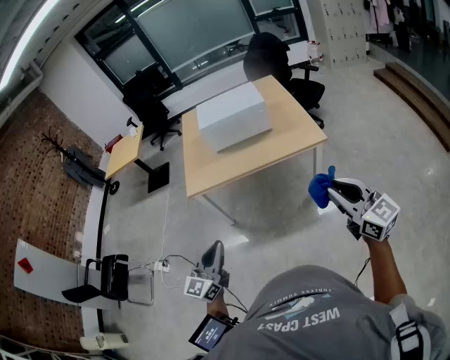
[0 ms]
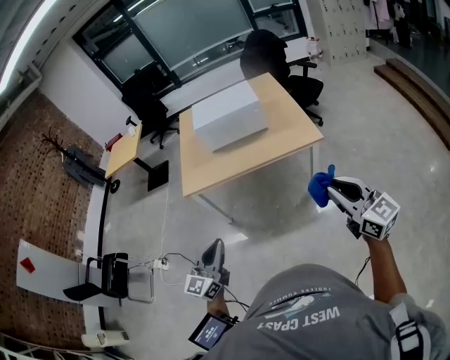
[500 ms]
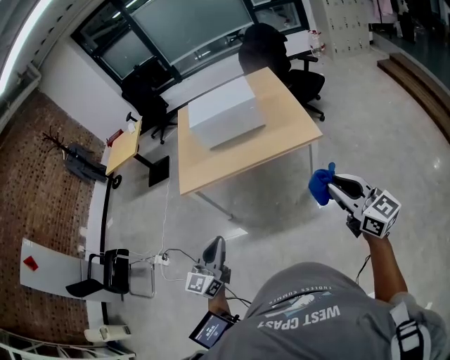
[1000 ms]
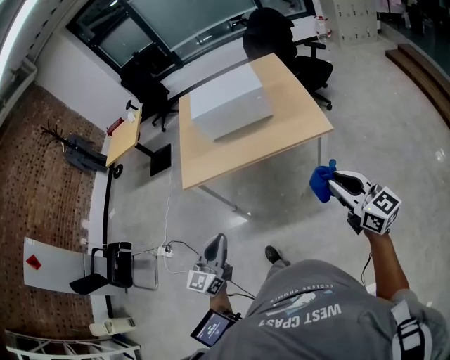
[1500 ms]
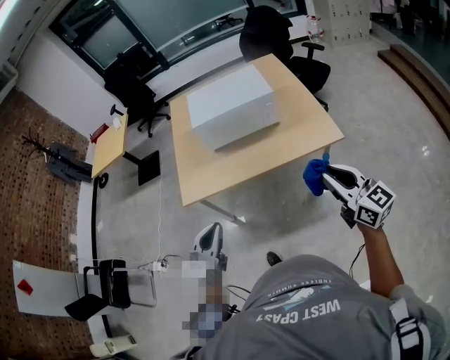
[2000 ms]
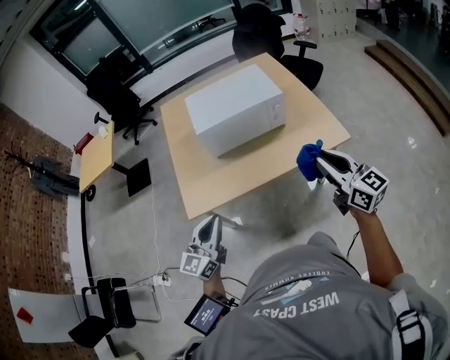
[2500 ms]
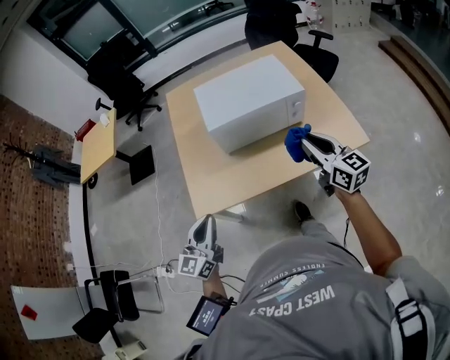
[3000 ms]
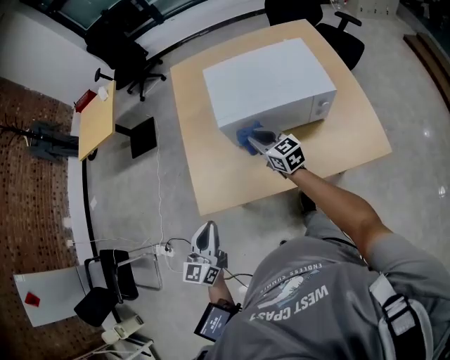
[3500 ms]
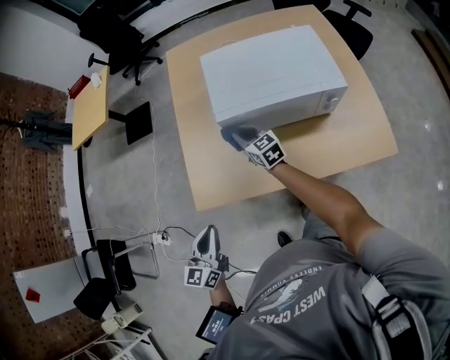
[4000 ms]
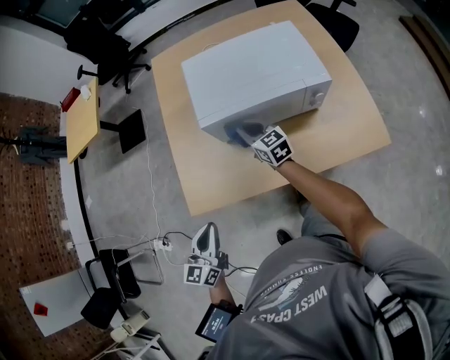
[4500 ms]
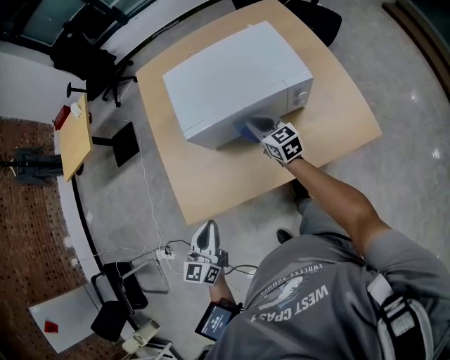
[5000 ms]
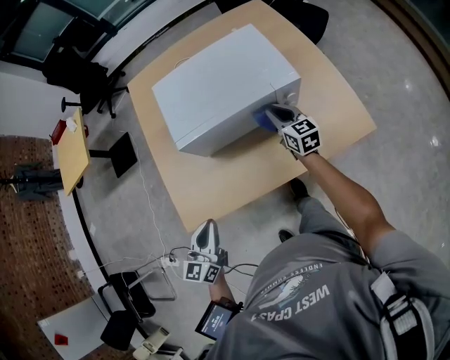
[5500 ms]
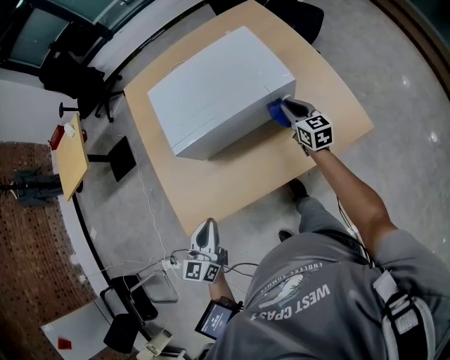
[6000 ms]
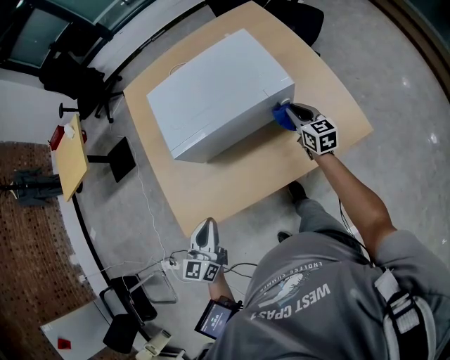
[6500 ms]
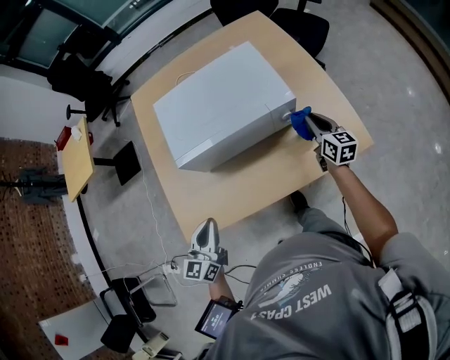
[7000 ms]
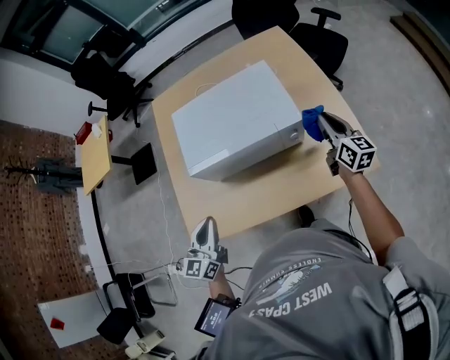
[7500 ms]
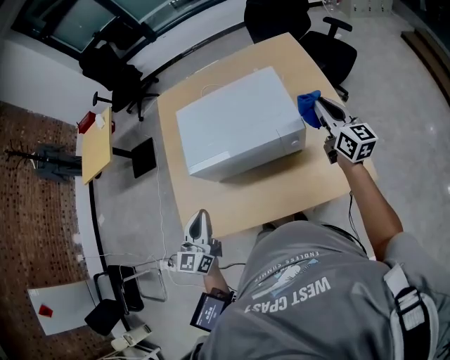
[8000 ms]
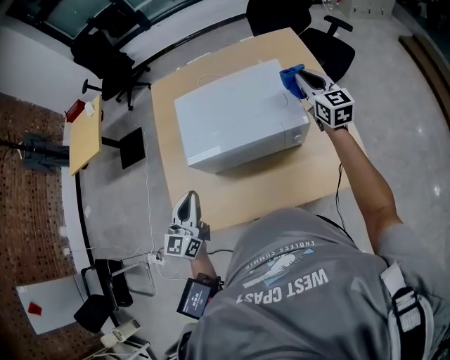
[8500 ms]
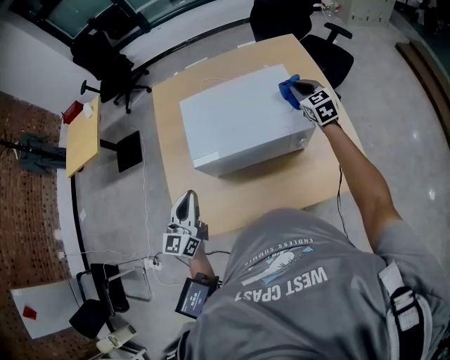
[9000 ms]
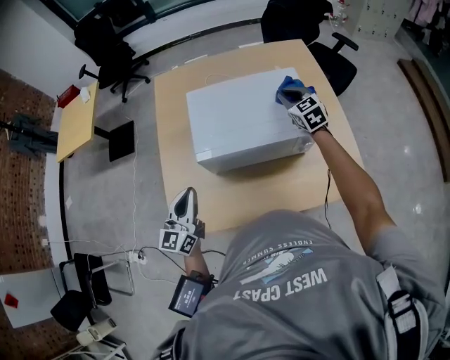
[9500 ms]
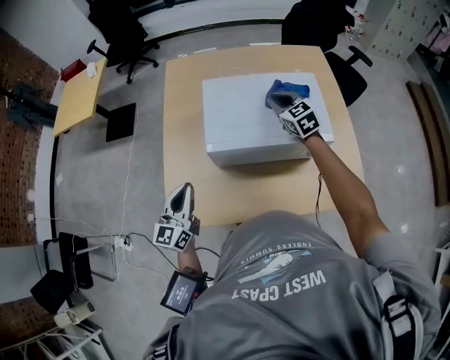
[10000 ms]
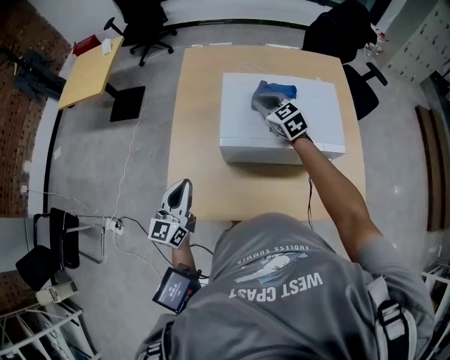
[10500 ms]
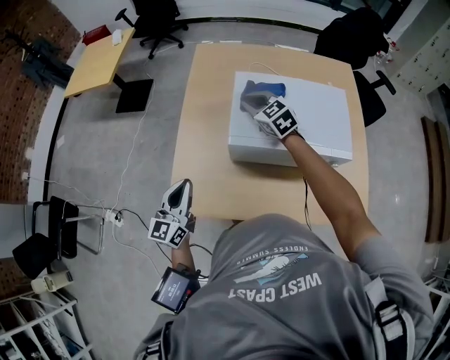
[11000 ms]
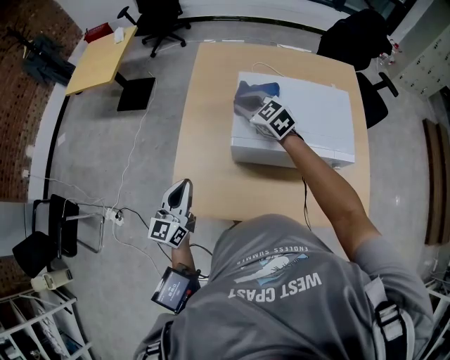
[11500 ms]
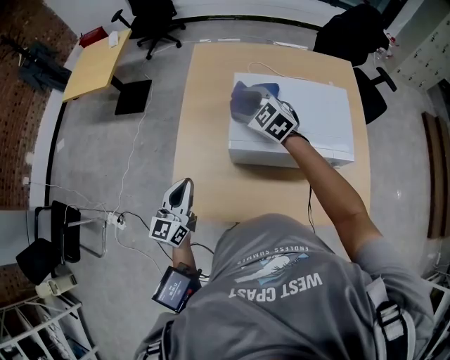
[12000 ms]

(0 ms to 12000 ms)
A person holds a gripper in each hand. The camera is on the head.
0 ms - 2000 ms: The grippers both shift forward by some 25 cm.
2000 ms - 4000 ms: The right gripper heads forward, to the left and downward, covering approximately 70 cm, and rotates roughly 20 degrees; the left gripper travels forward, to the left and downward by approximately 35 cm, and turns by approximately 20 degrees.
4000 ms - 6000 ms: The right gripper shifts some 35 cm to the right, and turns by roughly 30 degrees; the left gripper goes some 15 cm to the right and forward.
6000 ms - 8000 ms: The left gripper travels upward and forward by roughly 10 cm. The right gripper travels upward and to the right by some 20 cm.
8000 ms - 10000 ms: The right gripper heads to the left and forward, covering approximately 30 cm, and changes its angle by about 50 degrees. Meanwhile the left gripper moves to the left, roughly 10 cm.
10000 ms - 12000 ms: The left gripper shifts approximately 5 cm to the left; the right gripper moves to the left, approximately 20 cm, swivels about 30 degrees, and opens its fingers.

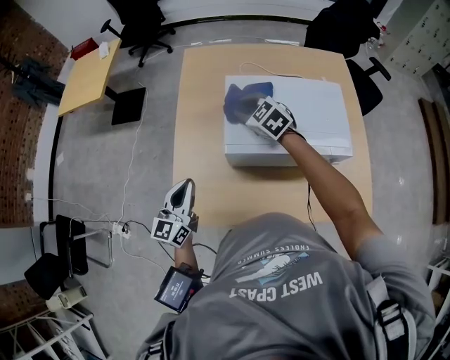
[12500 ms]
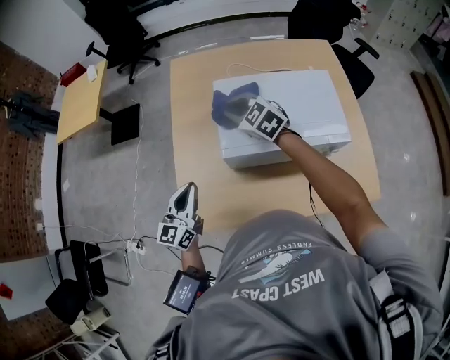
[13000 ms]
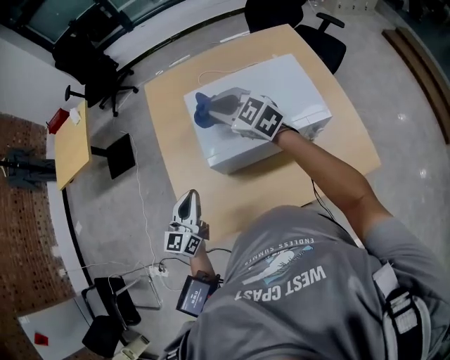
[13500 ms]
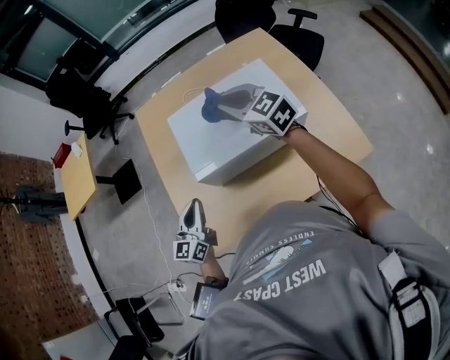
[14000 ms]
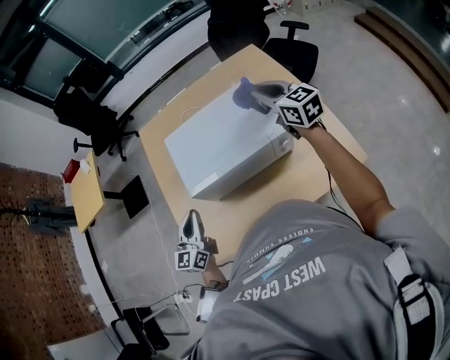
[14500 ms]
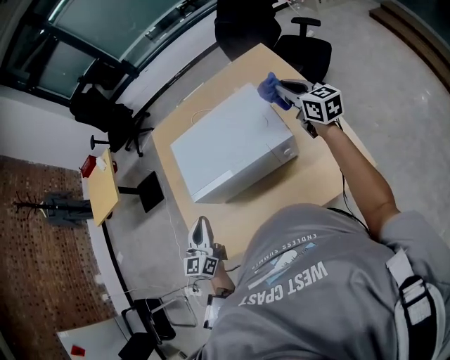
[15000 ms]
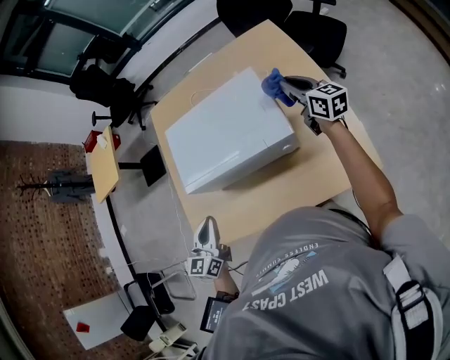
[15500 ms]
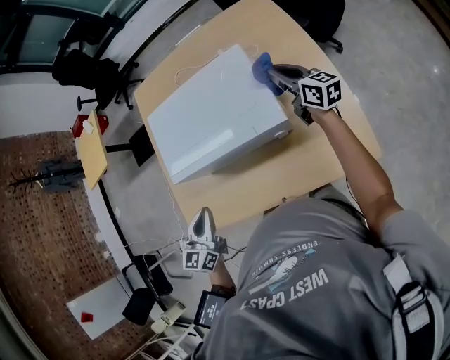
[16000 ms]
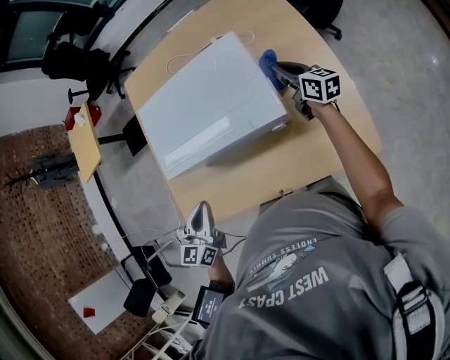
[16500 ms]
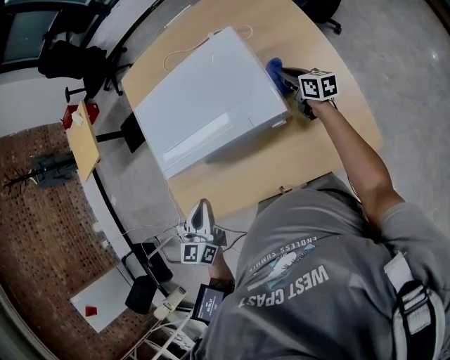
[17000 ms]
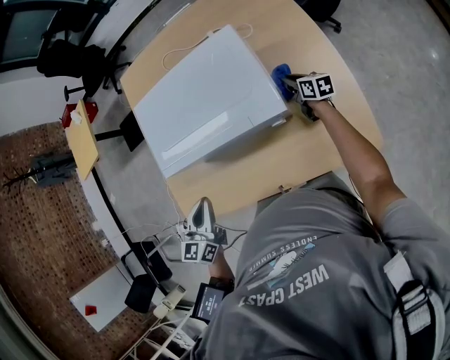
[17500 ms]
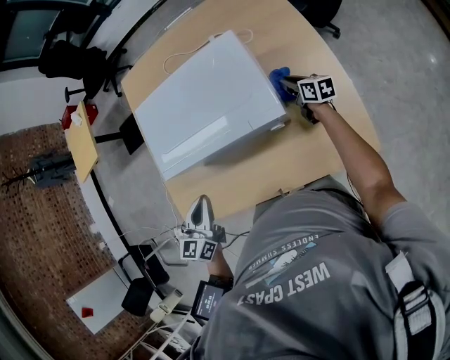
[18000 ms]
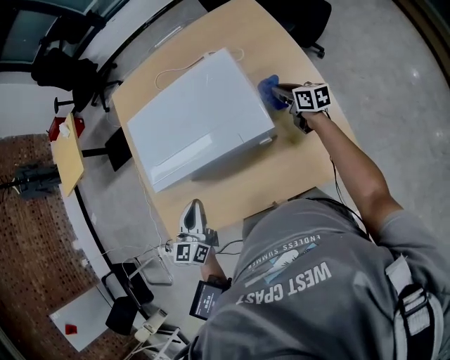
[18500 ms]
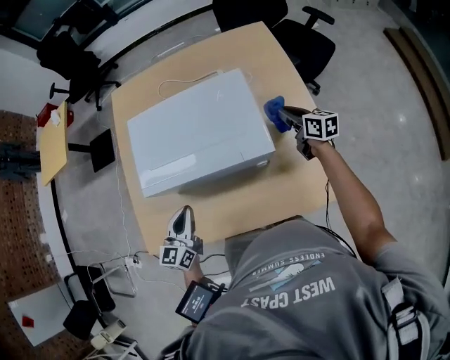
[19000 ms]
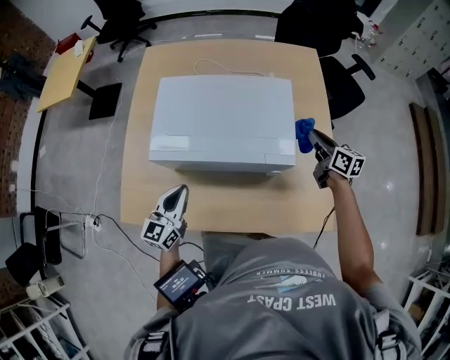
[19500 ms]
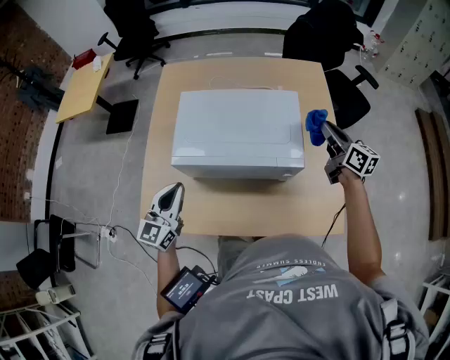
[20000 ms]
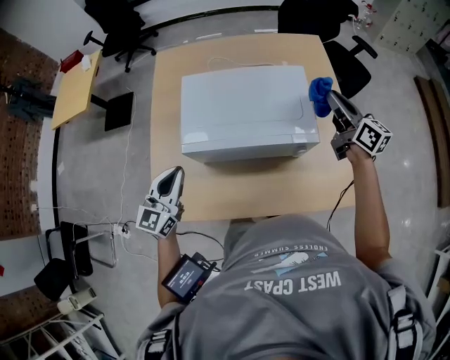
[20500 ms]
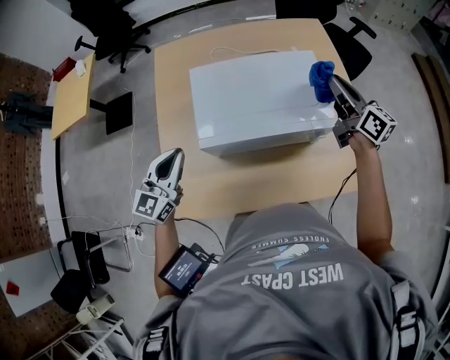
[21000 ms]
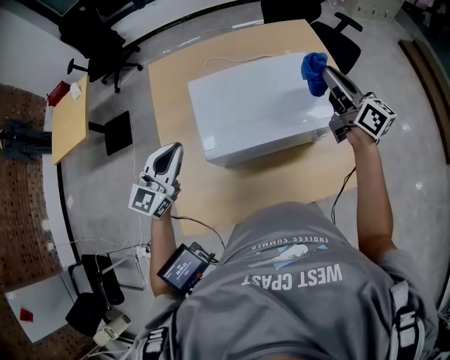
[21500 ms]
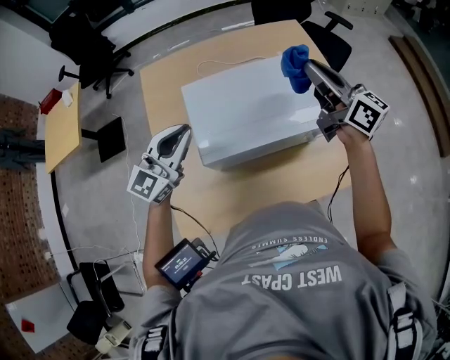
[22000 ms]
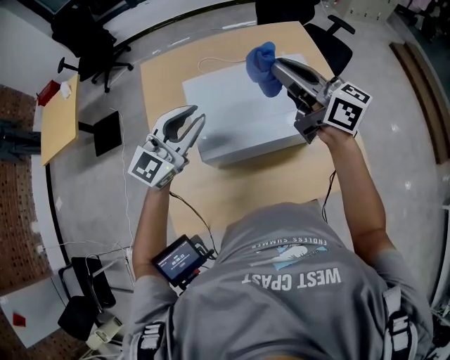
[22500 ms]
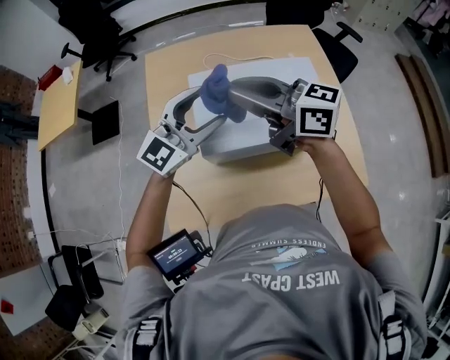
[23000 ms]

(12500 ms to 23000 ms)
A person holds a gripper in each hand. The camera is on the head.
12500 ms - 14500 ms: The right gripper goes about 35 cm to the right, and turns by roughly 50 degrees. Meanwhile the left gripper travels to the right by approximately 15 cm.
14500 ms - 16500 ms: The left gripper travels to the right and downward by about 15 cm, and swivels approximately 20 degrees, while the right gripper goes some 25 cm downward and to the right, and rotates about 30 degrees.
16500 ms - 19000 ms: The right gripper travels downward and back again, some 15 cm each way. Meanwhile the left gripper shifts by roughly 5 cm.
19000 ms - 21000 ms: The left gripper moves to the left and upward, some 20 cm, and rotates some 20 degrees, while the right gripper heads upward and to the left, covering roughly 25 cm, and changes its angle by some 20 degrees.
21000 ms - 23000 ms: The left gripper goes roughly 15 cm forward, to the right and upward, swivels approximately 30 degrees, and opens, while the right gripper goes about 25 cm to the left, and swivels about 40 degrees.

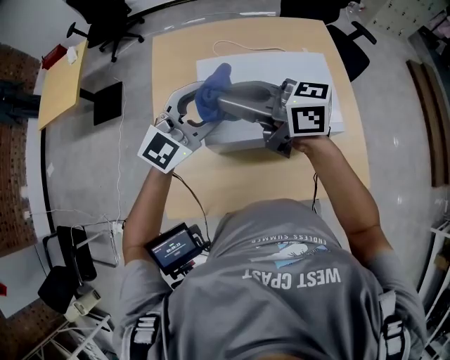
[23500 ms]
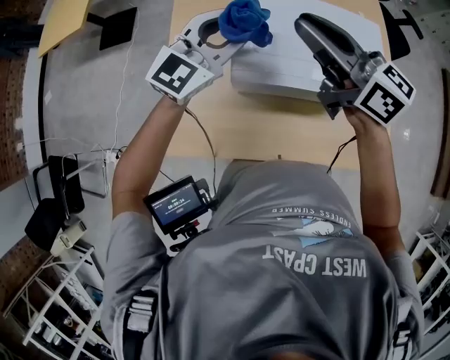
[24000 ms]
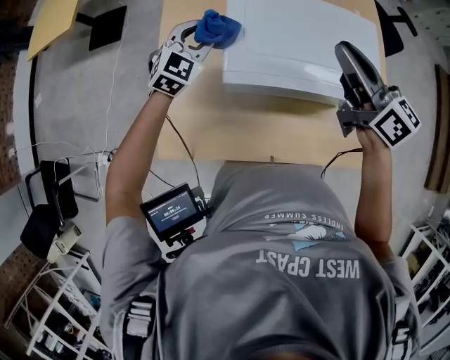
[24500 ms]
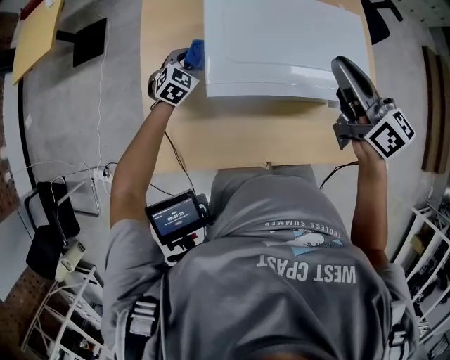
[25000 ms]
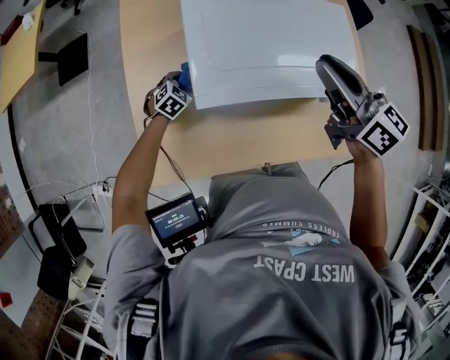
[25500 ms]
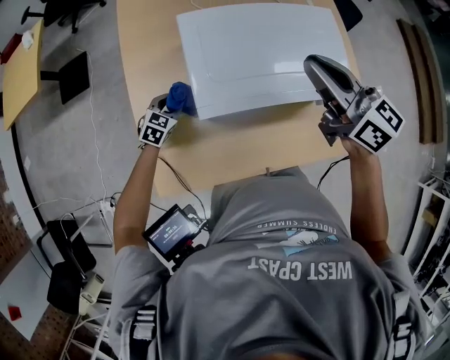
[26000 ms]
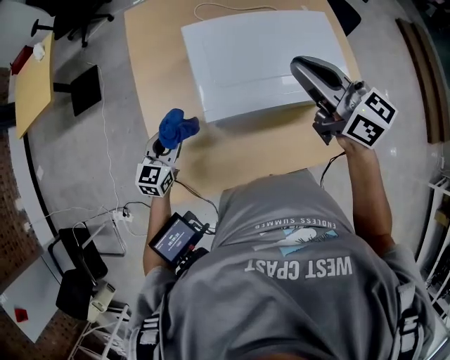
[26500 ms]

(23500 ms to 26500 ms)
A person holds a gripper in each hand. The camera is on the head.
23500 ms - 25000 ms: The left gripper shifts approximately 35 cm downward, tilts its fingers approximately 40 degrees downward, and closes up. The right gripper shifts roughly 15 cm to the right and downward, and changes its angle by about 40 degrees.
25000 ms - 26500 ms: The right gripper moves roughly 5 cm, while the left gripper heads backward and upward, covering approximately 15 cm, and swivels about 30 degrees.

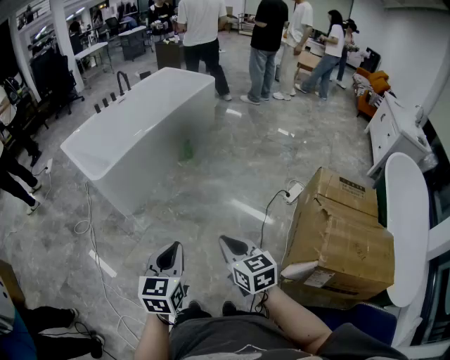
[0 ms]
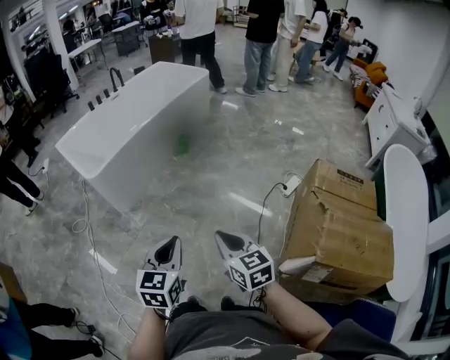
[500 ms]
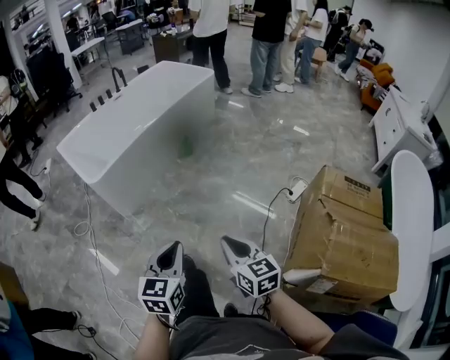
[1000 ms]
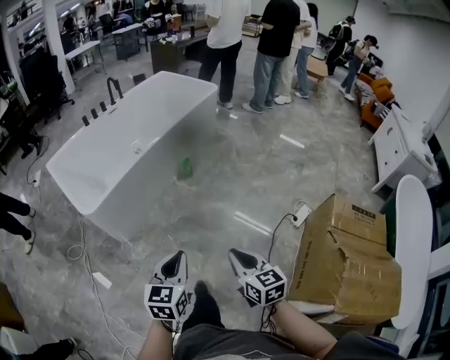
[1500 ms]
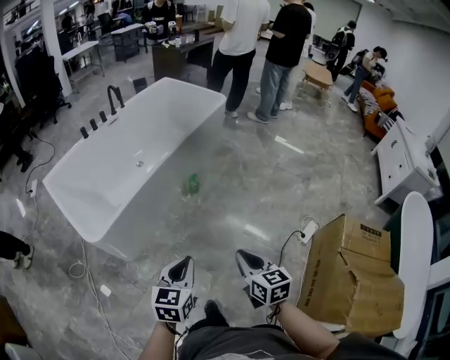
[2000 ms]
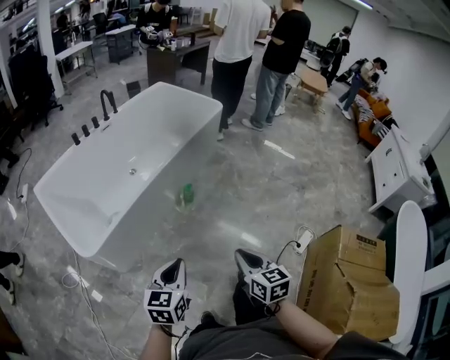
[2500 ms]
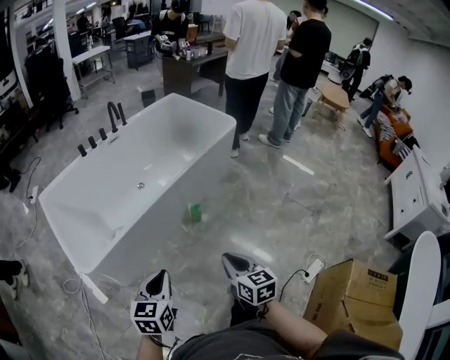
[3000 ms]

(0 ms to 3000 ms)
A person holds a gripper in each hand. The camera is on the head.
0 ms - 1500 ms: Both grippers move forward, roughly 25 cm.
1500 ms - 3000 ms: Both grippers move forward, about 35 cm.
